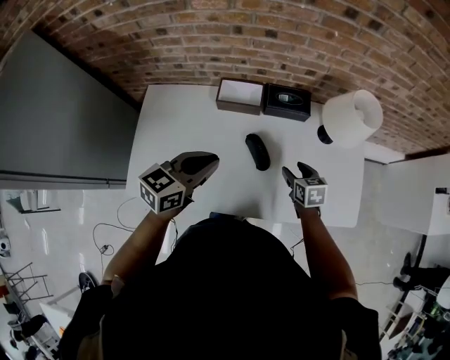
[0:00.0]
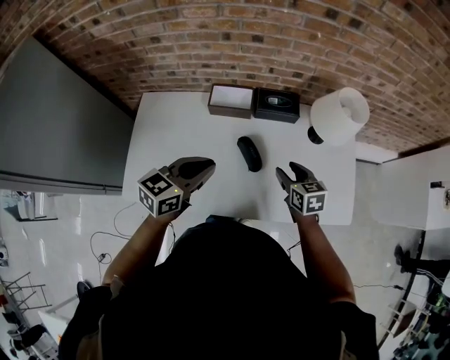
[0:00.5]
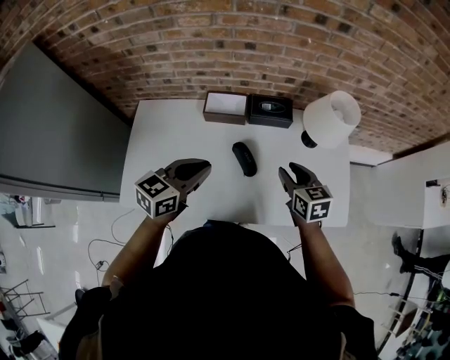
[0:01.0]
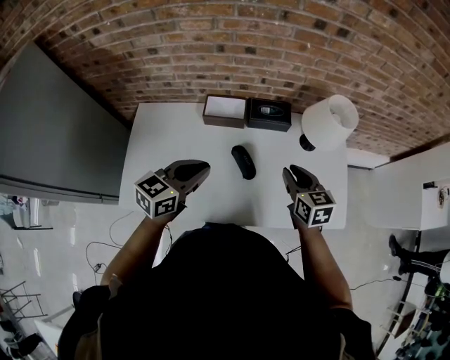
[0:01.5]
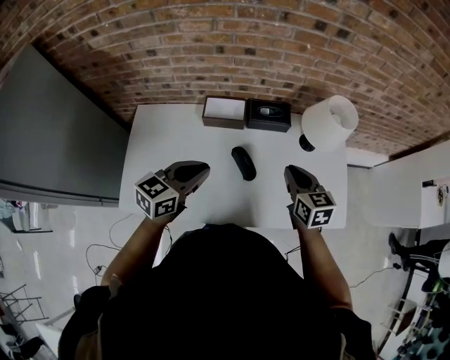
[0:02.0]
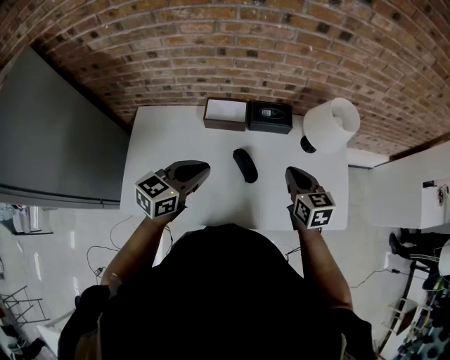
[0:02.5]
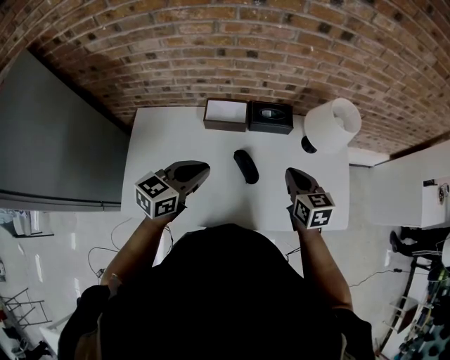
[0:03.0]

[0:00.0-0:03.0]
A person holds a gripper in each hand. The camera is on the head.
0:00.0 to 0:01.5: The right gripper shifts about 15 cm upward, and closes its fingers.
0:01.5 to 0:03.0: The grippers stay close to where they were, moving slightly.

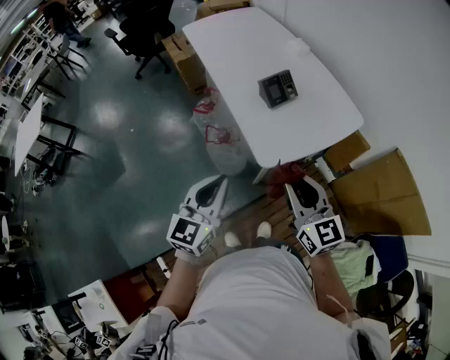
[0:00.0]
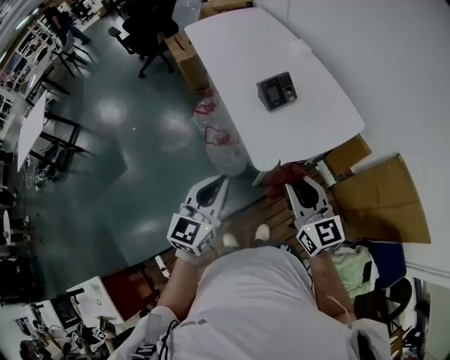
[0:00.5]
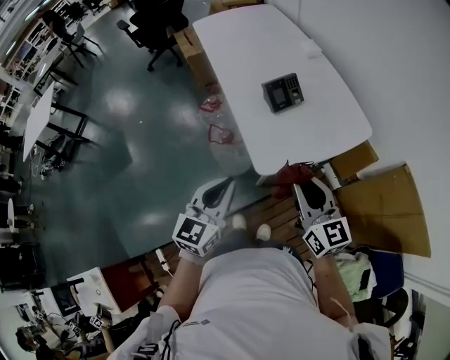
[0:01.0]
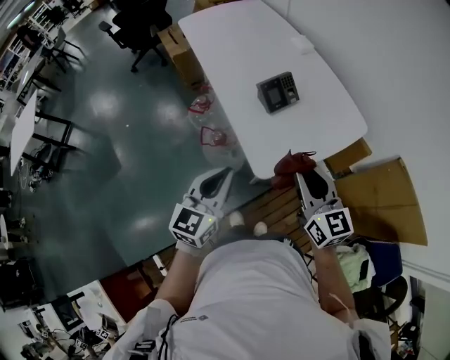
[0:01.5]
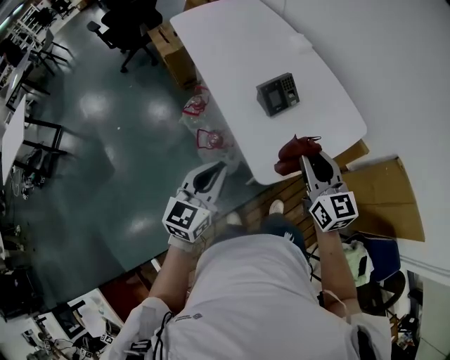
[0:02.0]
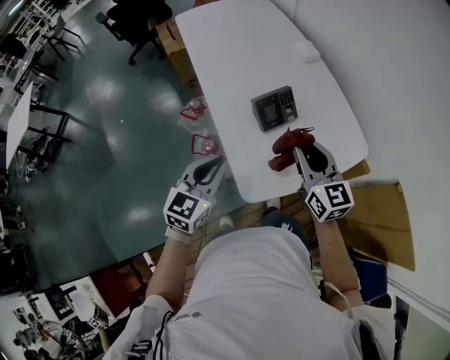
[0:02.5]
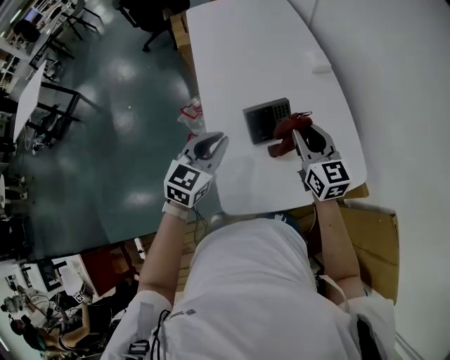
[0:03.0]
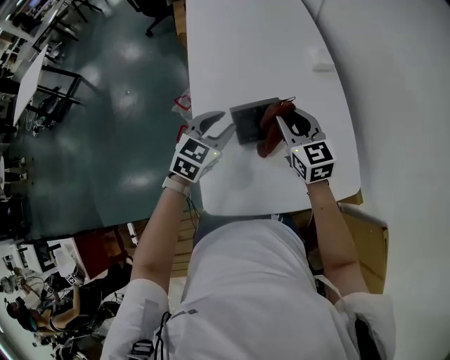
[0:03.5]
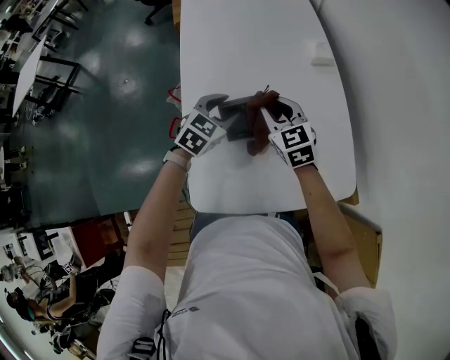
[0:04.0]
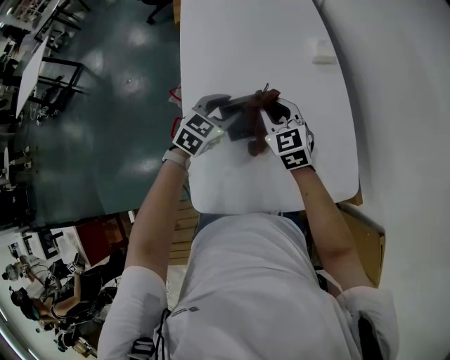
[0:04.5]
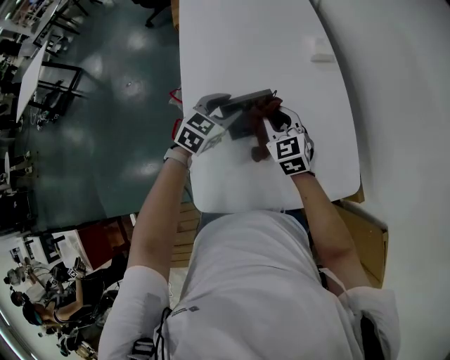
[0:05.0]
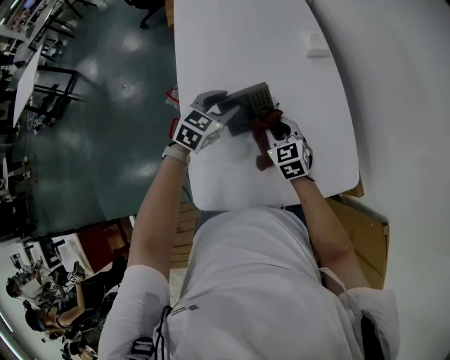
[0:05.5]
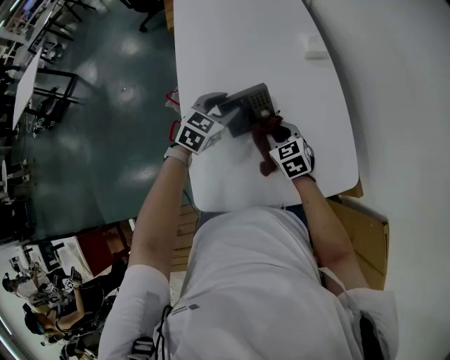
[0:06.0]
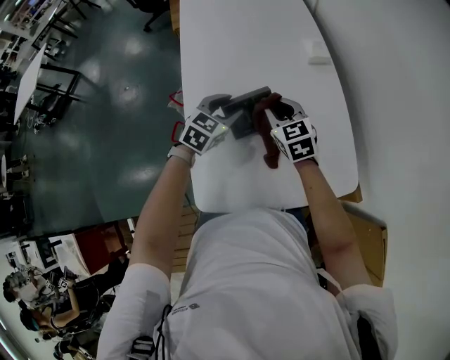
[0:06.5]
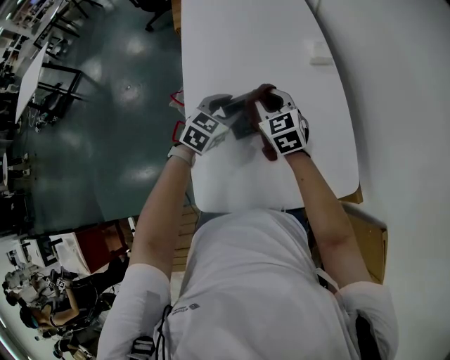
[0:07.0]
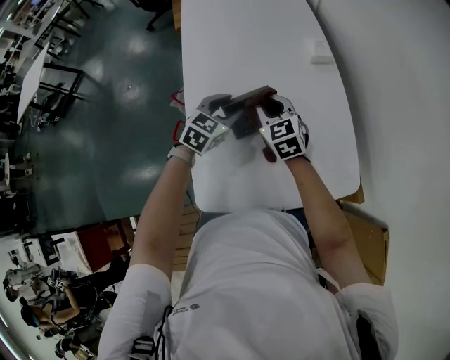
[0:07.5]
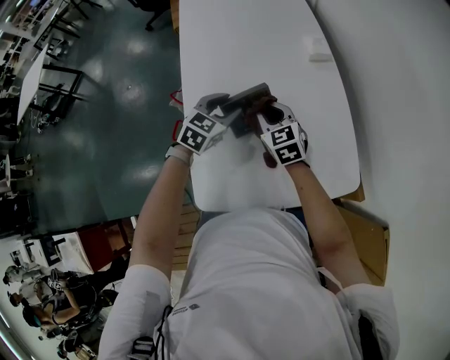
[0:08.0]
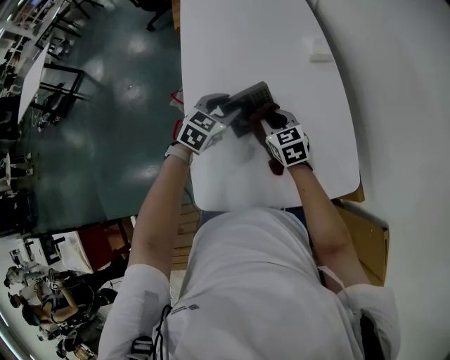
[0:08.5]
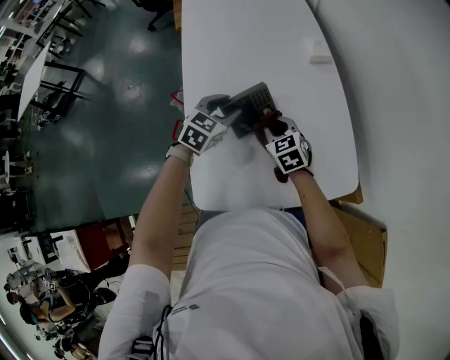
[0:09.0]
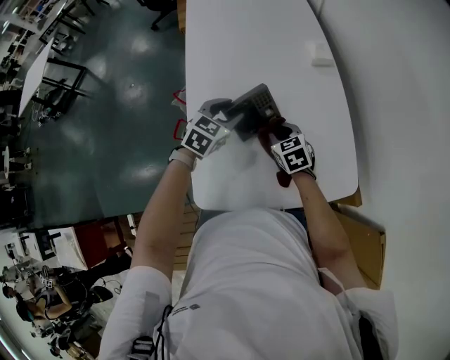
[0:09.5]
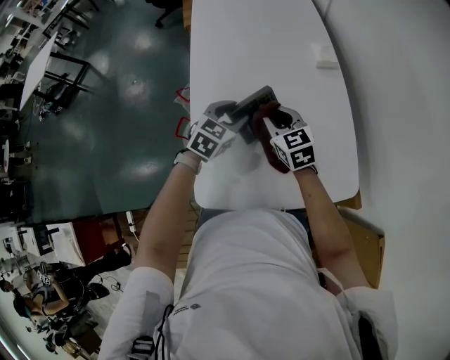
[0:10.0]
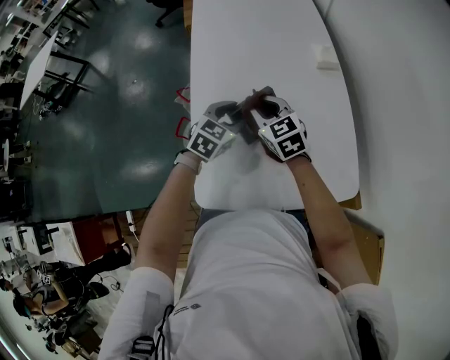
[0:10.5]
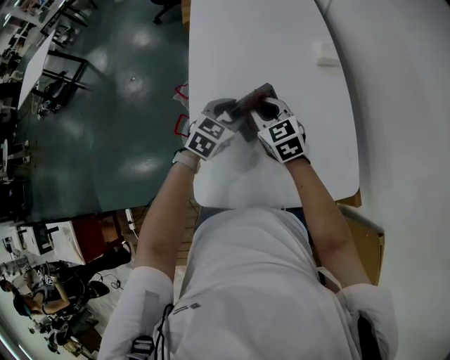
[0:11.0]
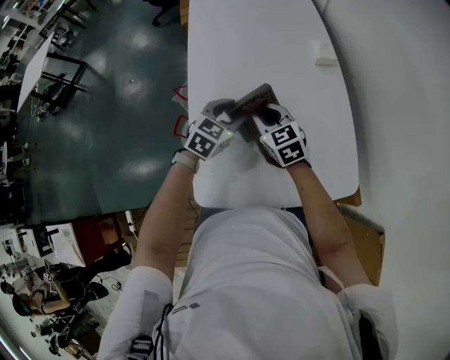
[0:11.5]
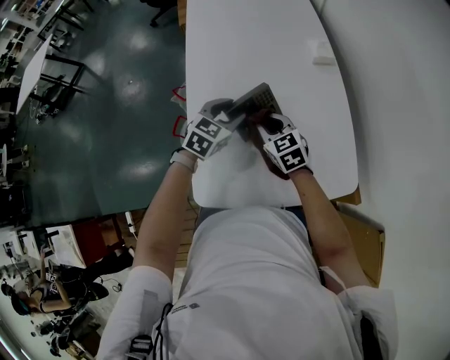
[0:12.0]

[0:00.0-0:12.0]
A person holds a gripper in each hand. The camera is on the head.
0:00.0 to 0:02.0: The grippers both shift forward by some 15 cm.
0:02.0 to 0:04.0: The right gripper moves forward, some 30 cm, and rotates some 40 degrees, while the left gripper heads forward and to the right, covering some 35 cm, rotates some 30 degrees, and opens its fingers.
0:04.0 to 0:06.0: The right gripper is displaced downward and backward by about 15 cm.
0:06.0 to 0:08.0: The right gripper shifts approximately 5 cm upward.
0:08.0 to 0:10.0: The right gripper reaches approximately 5 cm downward, then returns.
0:10.0 to 0:12.0: The right gripper ends up some 5 cm from where it was.

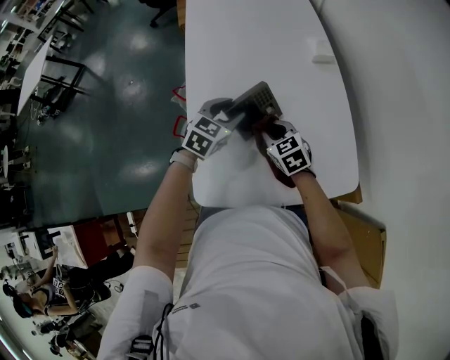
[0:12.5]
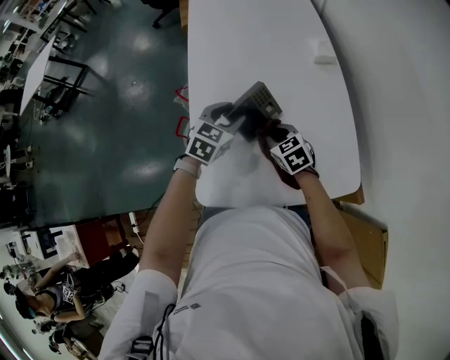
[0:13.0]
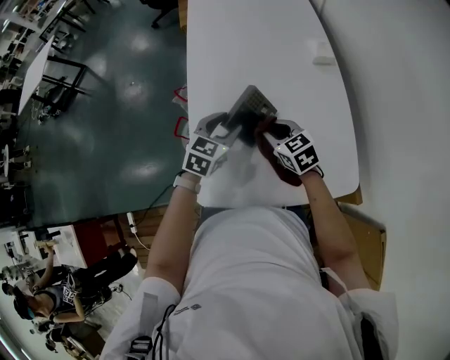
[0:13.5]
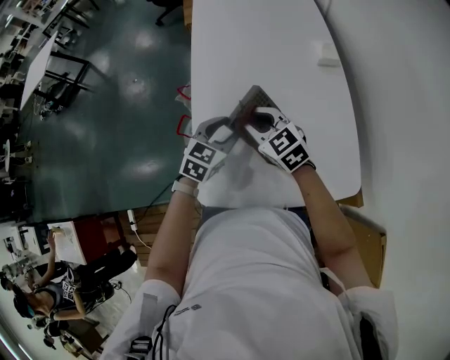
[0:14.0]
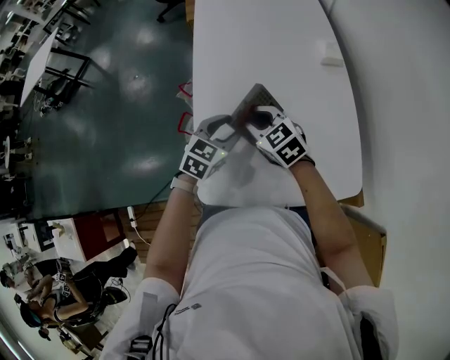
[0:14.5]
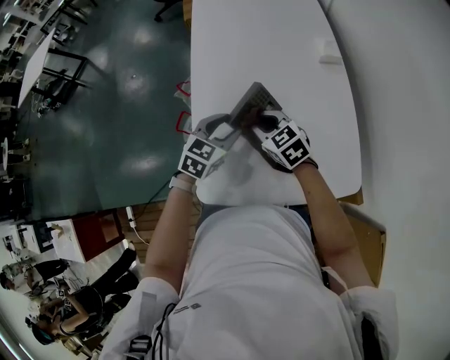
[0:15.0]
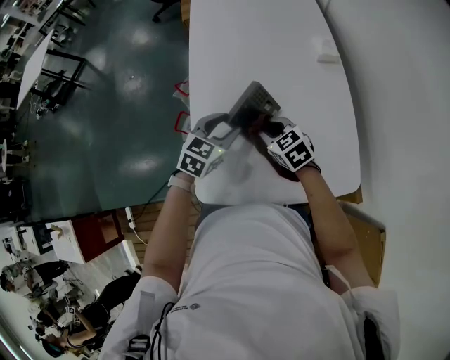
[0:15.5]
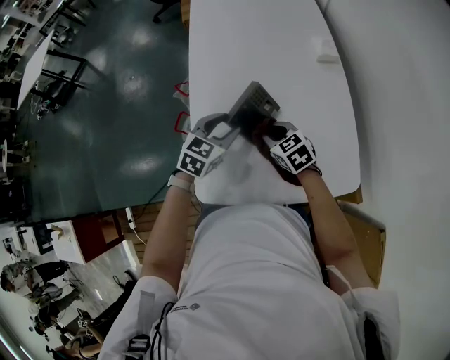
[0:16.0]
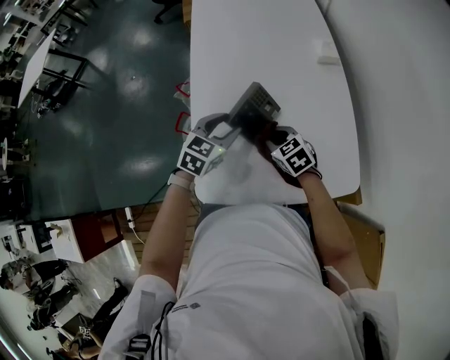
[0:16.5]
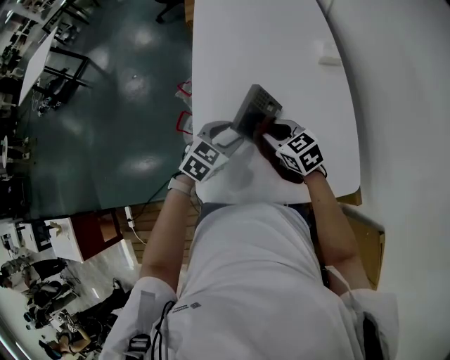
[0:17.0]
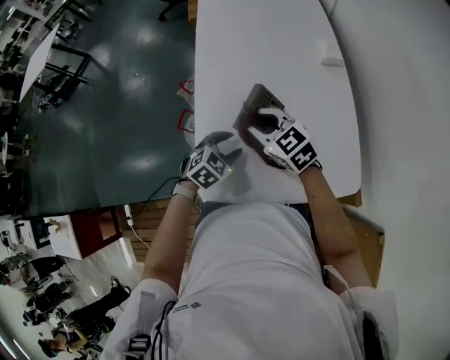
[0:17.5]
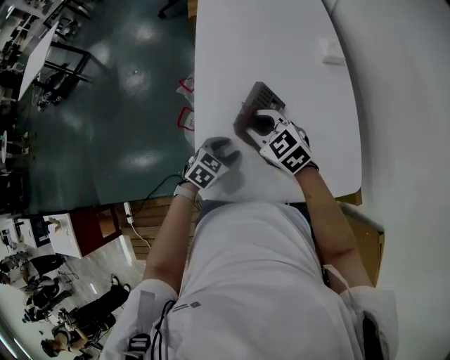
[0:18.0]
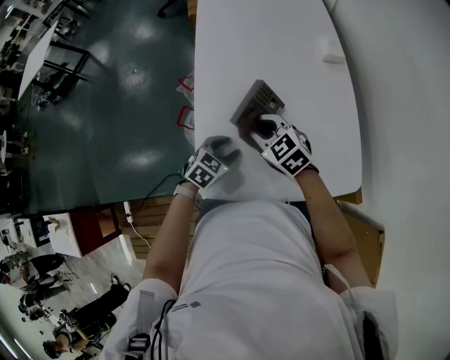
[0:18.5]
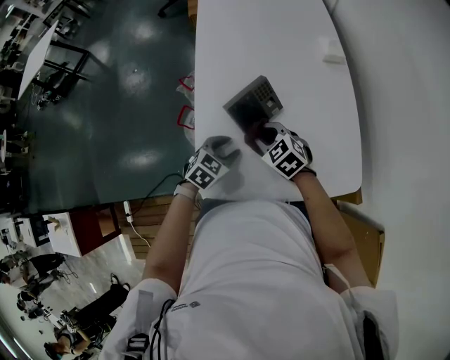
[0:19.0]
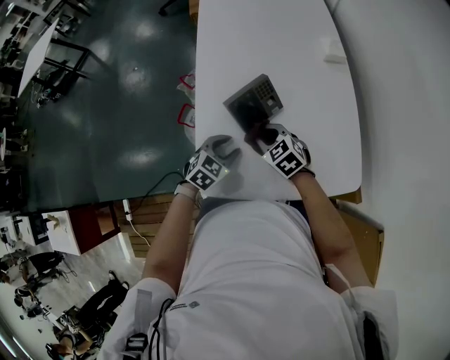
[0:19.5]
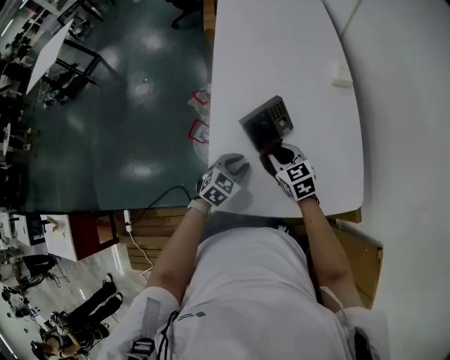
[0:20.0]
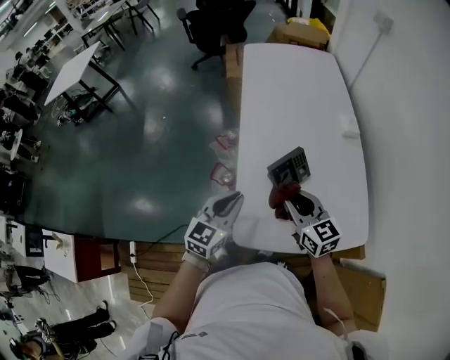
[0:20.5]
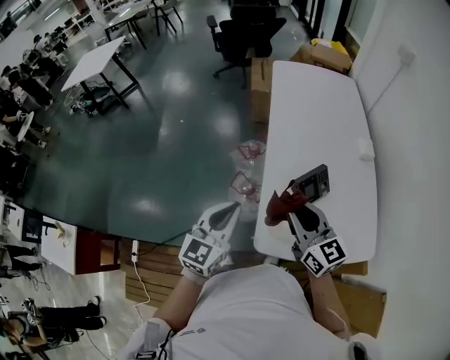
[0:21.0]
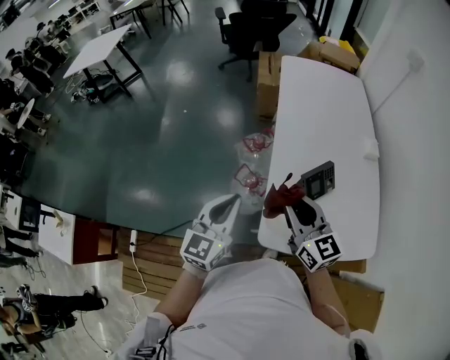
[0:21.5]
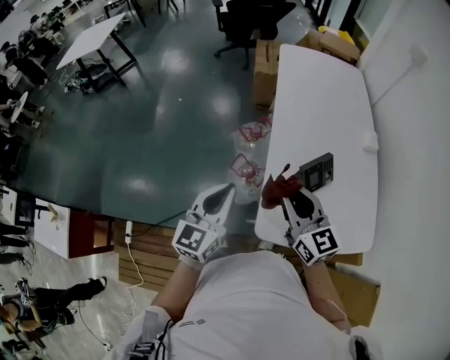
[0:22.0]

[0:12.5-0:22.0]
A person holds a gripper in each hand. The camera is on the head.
0:12.5 to 0:14.5: The right gripper is displaced to the left and upward by about 10 cm; the left gripper travels backward by roughly 5 cm.
0:14.5 to 0:16.5: The right gripper is displaced downward and to the right by about 10 cm.
0:16.5 to 0:18.0: The right gripper is displaced upward and to the left by roughly 15 cm. The left gripper heads downward and backward, covering approximately 10 cm.
0:18.0 to 0:20.0: The right gripper goes about 5 cm downward.
0:20.0 to 0:22.0: Both grippers travel together upward and to the left, approximately 30 cm. The left gripper angles its fingers upward, by approximately 40 degrees, and closes, while the right gripper changes its angle by approximately 30 degrees.

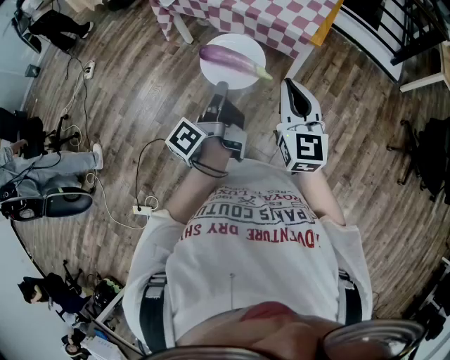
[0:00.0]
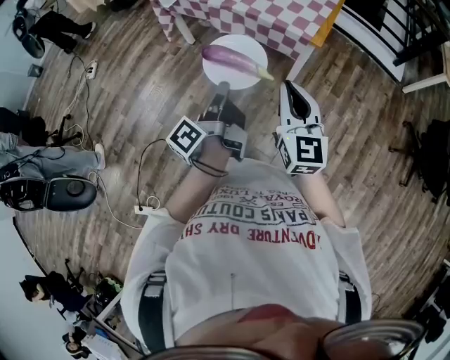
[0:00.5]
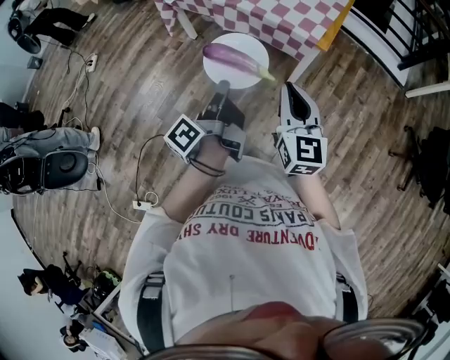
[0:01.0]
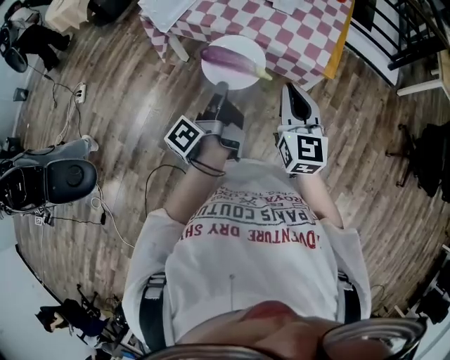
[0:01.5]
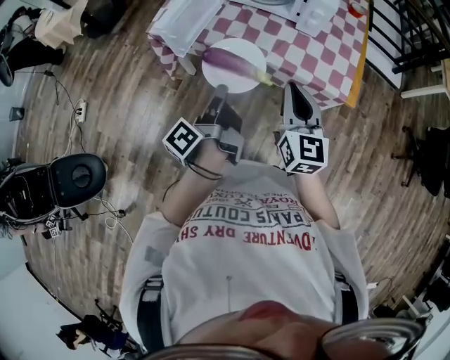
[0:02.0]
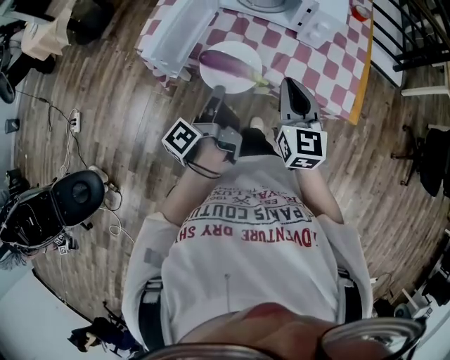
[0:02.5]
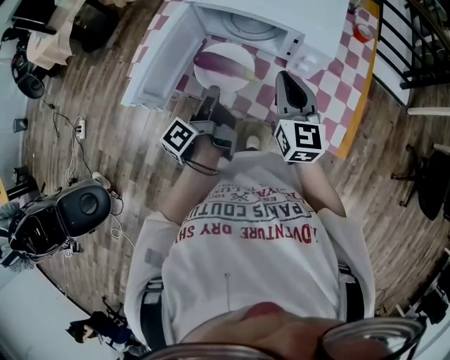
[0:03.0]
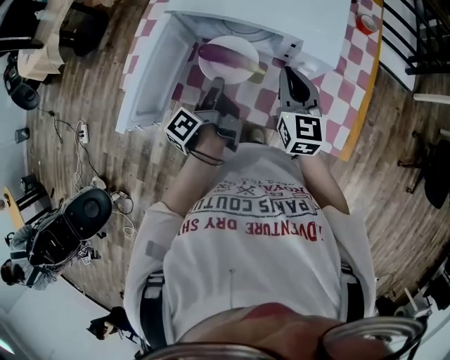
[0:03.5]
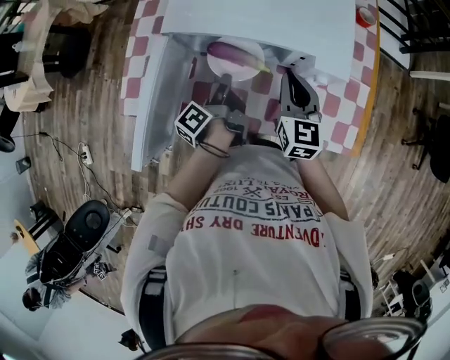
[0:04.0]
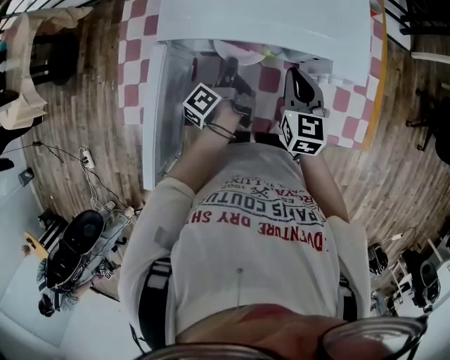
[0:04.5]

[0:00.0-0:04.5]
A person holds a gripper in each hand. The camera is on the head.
0:00.0 to 0:02.0: The right gripper moves about 35 cm.
0:02.0 to 0:04.5: The right gripper shifts by approximately 40 cm, and rotates approximately 20 degrees.
